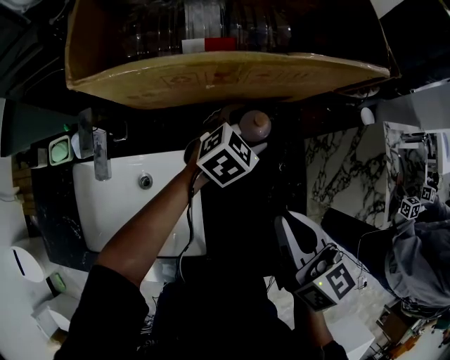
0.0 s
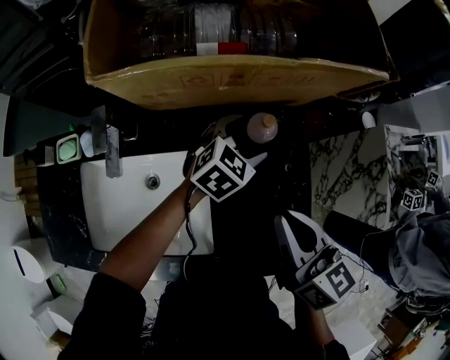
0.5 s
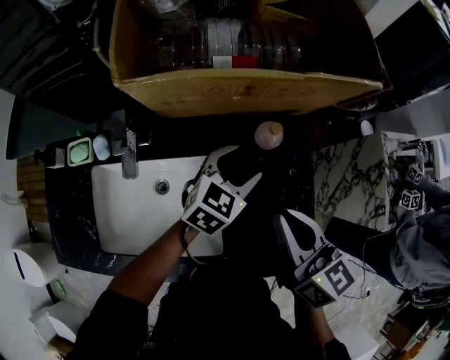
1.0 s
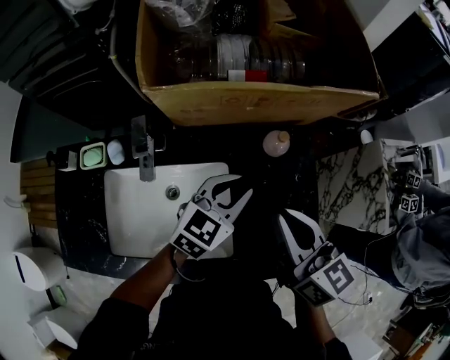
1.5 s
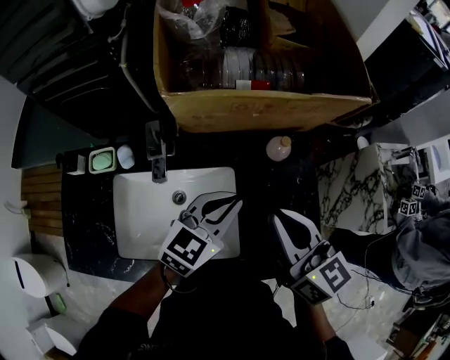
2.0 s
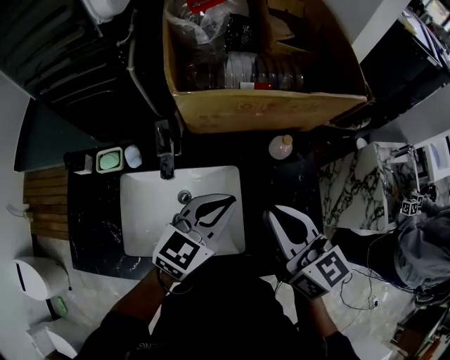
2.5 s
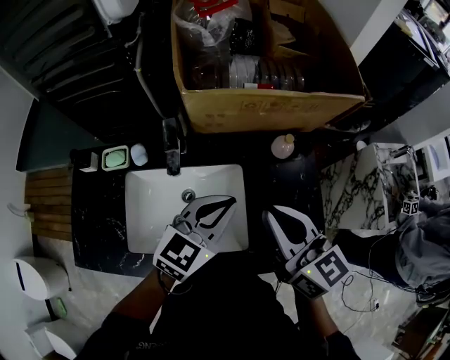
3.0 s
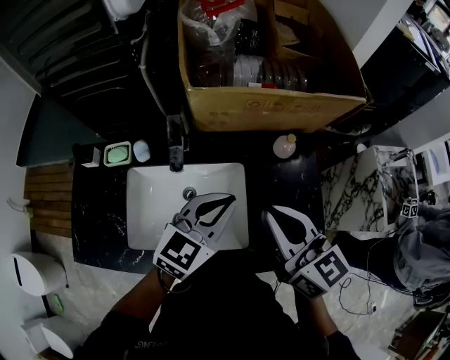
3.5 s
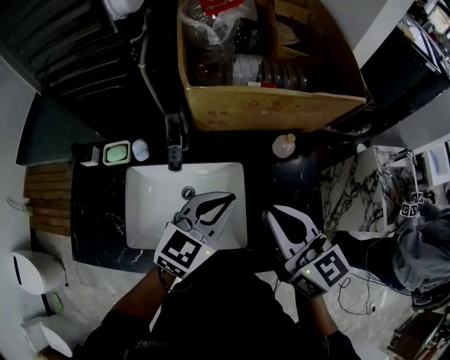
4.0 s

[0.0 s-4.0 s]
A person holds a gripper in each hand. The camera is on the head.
0.0 to 2.0 s: The right gripper is displaced to the left and upward by roughly 15 cm, while the left gripper is displaced backward, upward and to the left by some 25 cm, changes its angle by about 30 degrees, and closes up.
2.0 to 4.0 s: The right gripper ends up about 5 cm from where it was; the left gripper shifts by roughly 5 cm.

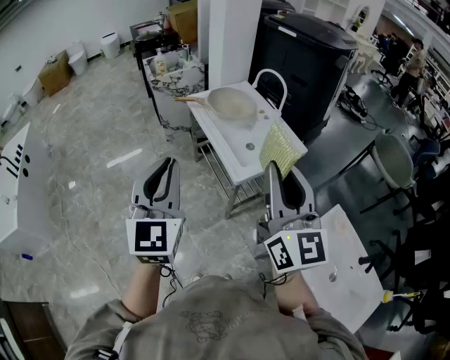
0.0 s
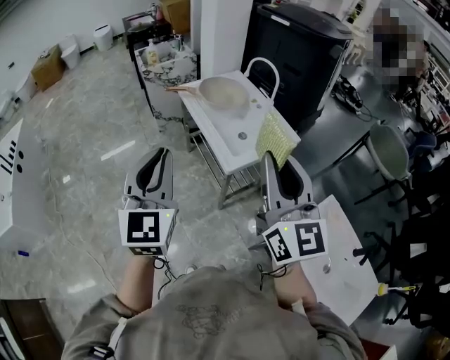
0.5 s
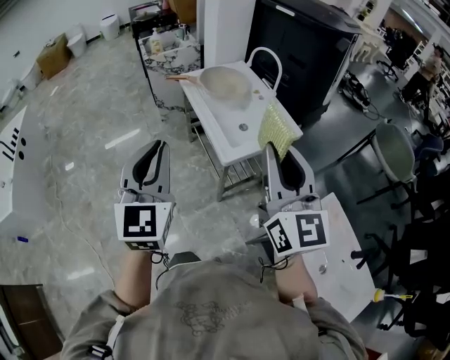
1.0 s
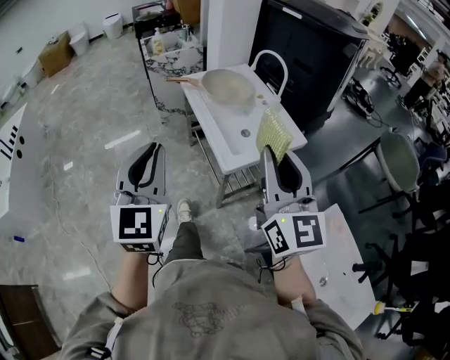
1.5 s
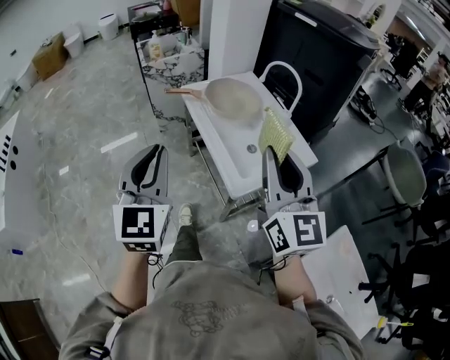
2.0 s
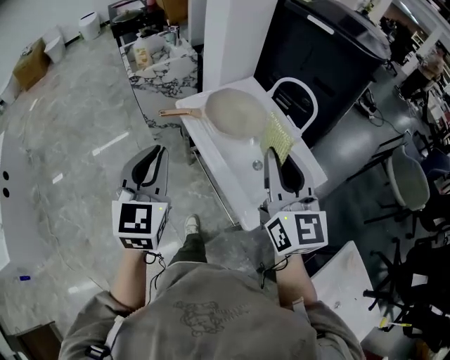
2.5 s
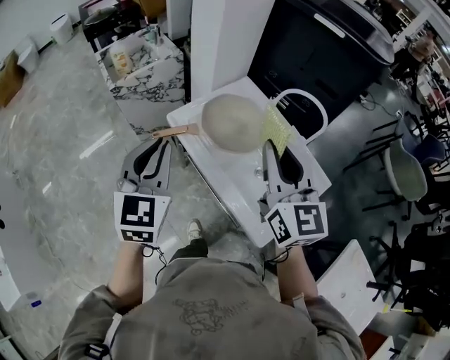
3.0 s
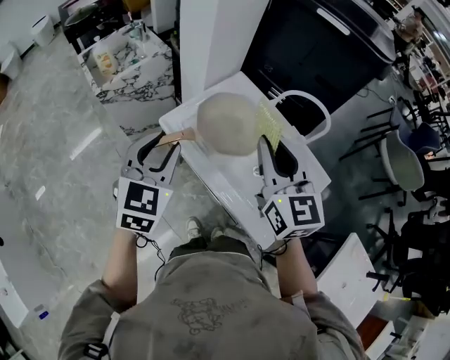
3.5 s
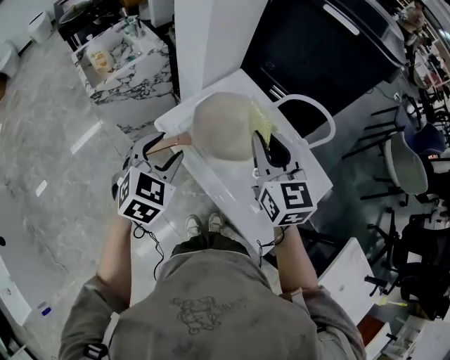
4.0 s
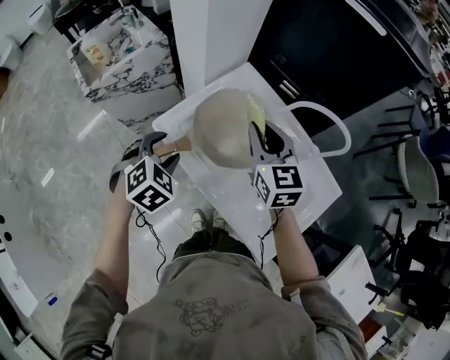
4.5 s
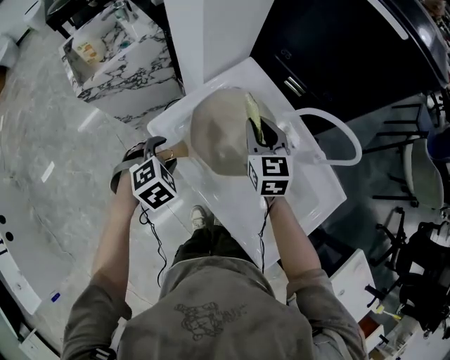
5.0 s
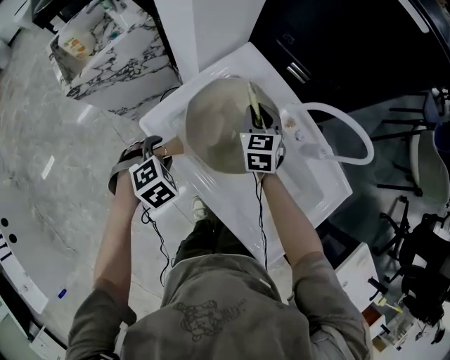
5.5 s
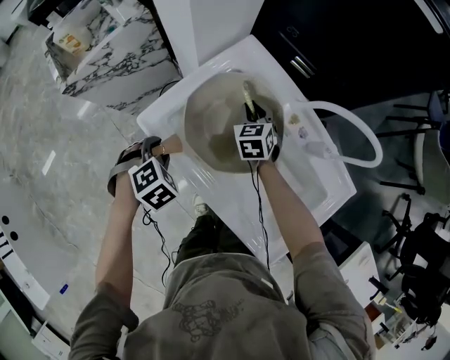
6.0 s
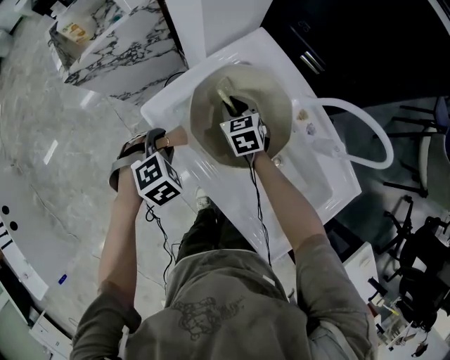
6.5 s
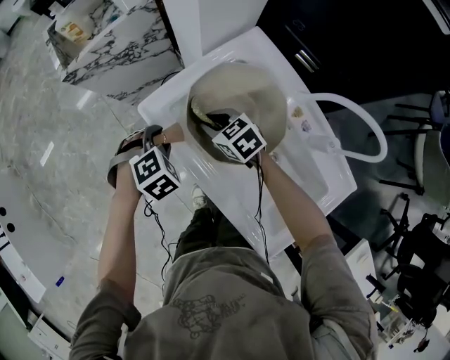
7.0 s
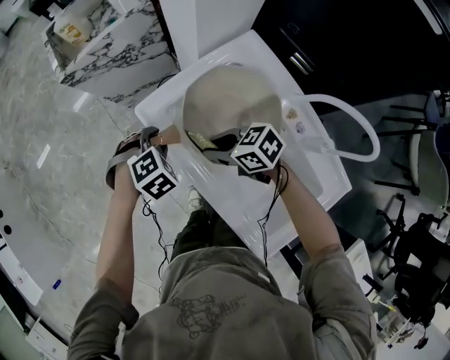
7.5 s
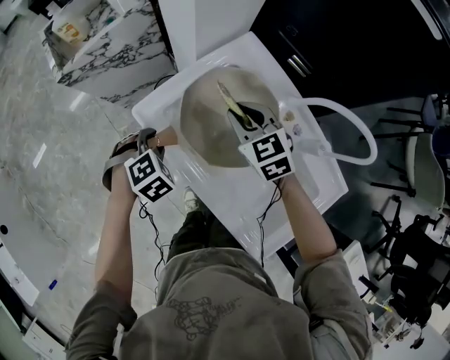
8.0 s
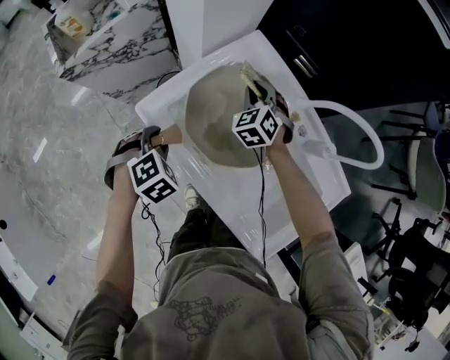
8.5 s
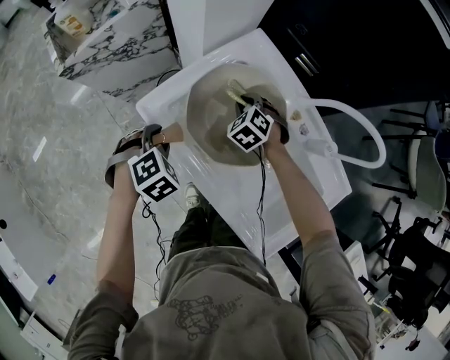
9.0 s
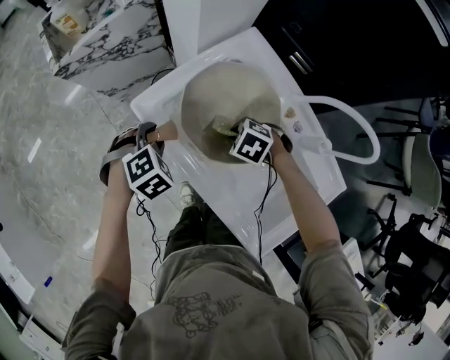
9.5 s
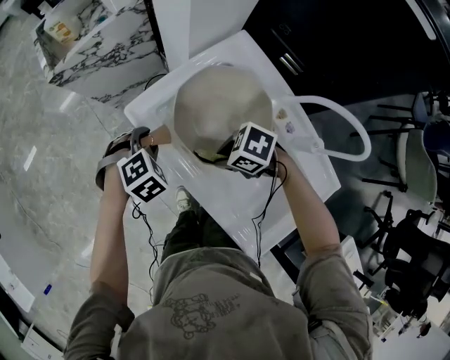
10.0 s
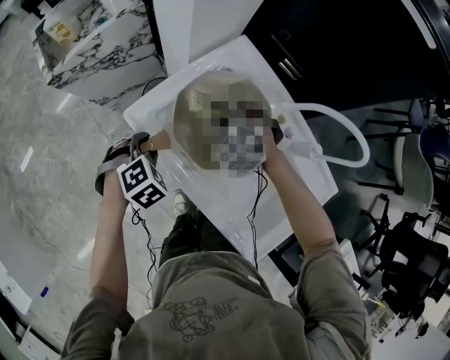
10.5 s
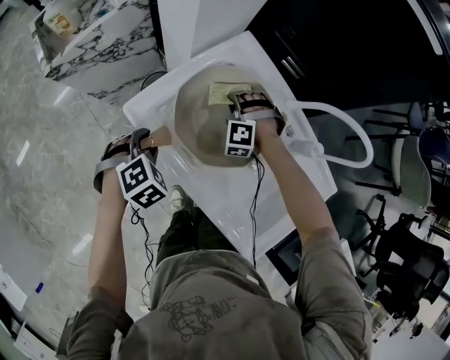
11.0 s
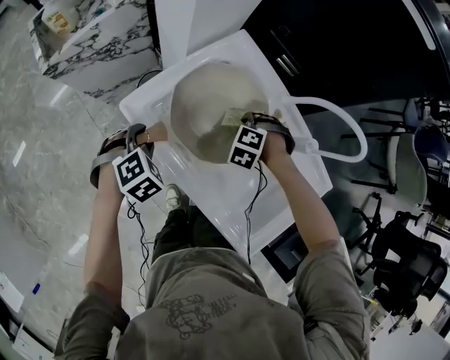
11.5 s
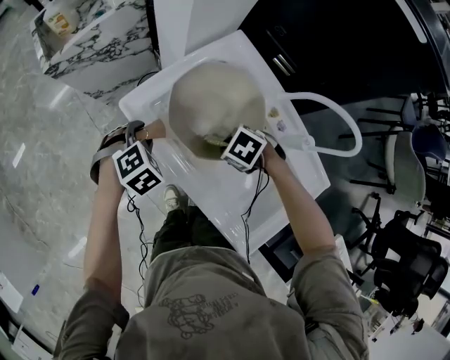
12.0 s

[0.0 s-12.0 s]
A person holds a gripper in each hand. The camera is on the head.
0.0 to 2.0 s: The grippers both shift forward and downward by some 20 cm.
2.0 to 4.0 s: The pair of grippers is taken forward, some 50 cm. The left gripper tilts its fingers roughly 30 degrees downward, and opens. Meanwhile the right gripper turns by about 30 degrees.
4.0 to 6.0 s: The right gripper heads downward and forward, covering approximately 40 cm, and points its fingers about 30 degrees further downward. The left gripper goes some 25 cm downward, and tips its fingers downward by roughly 40 degrees.
6.0 to 8.0 s: The right gripper shifts some 10 cm upward, and swivels about 30 degrees.
8.0 to 10.0 s: The right gripper ends up roughly 15 cm from where it was, and turns by roughly 60 degrees.
10.0 to 12.0 s: The right gripper travels downward and back again, about 5 cm each way, and changes its angle by roughly 20 degrees.

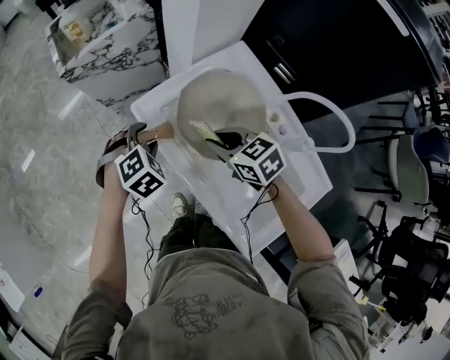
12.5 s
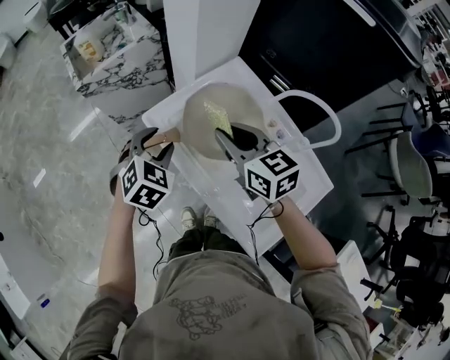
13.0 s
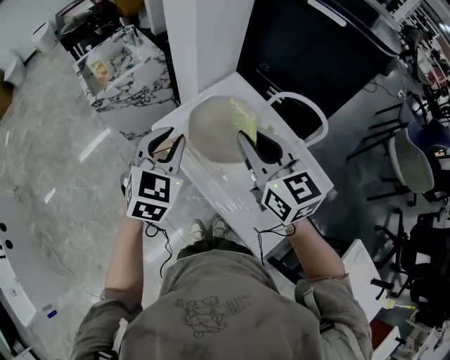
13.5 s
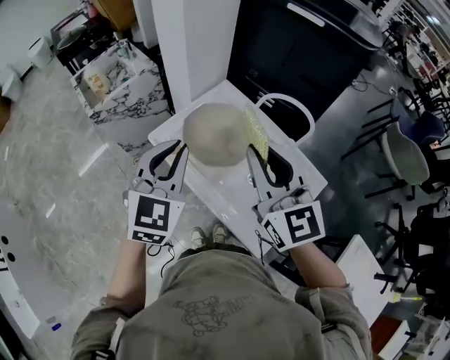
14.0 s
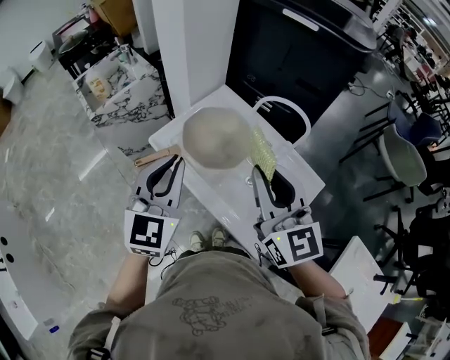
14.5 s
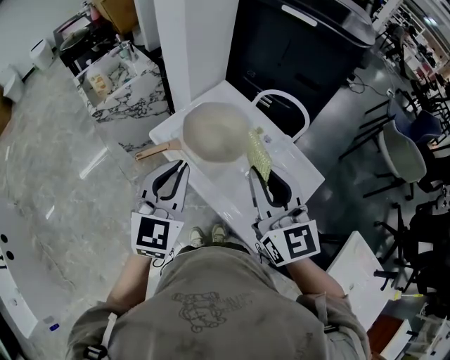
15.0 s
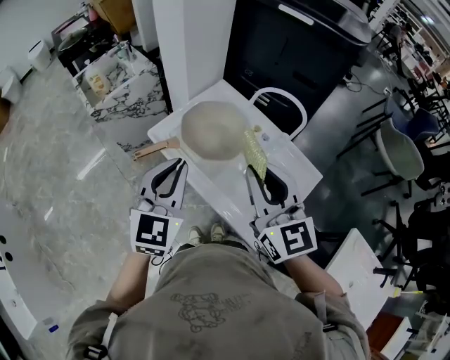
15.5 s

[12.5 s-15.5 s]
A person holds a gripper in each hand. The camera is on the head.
12.5 to 14.0 s: The grippers both shift upward by some 30 cm. The right gripper angles its fingers upward, by approximately 40 degrees. Meanwhile the left gripper angles its fingers upward, by roughly 50 degrees, and closes its fingers.
14.0 to 15.5 s: The two grippers go some 5 cm backward.

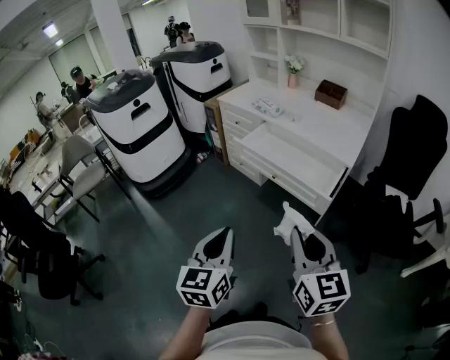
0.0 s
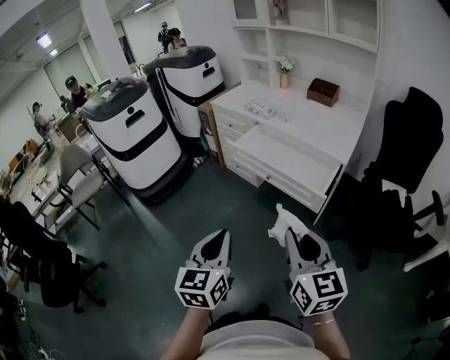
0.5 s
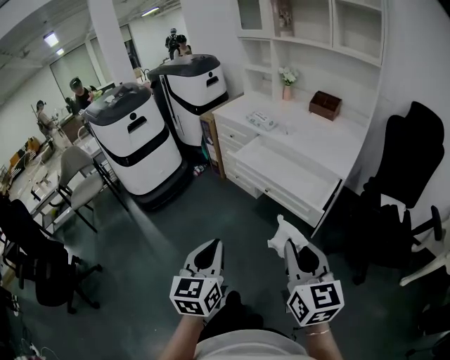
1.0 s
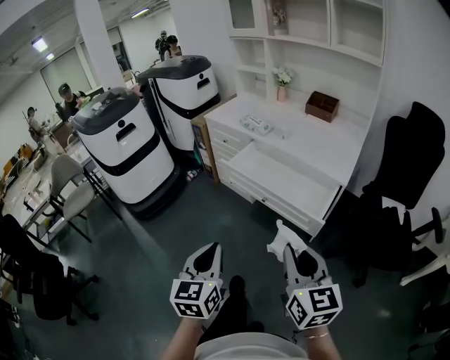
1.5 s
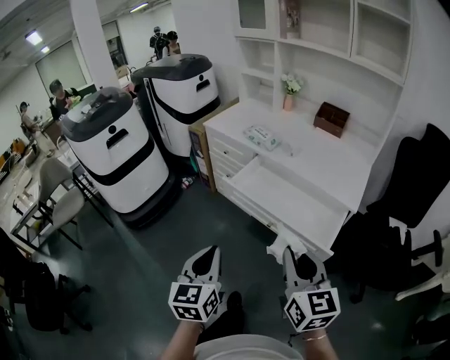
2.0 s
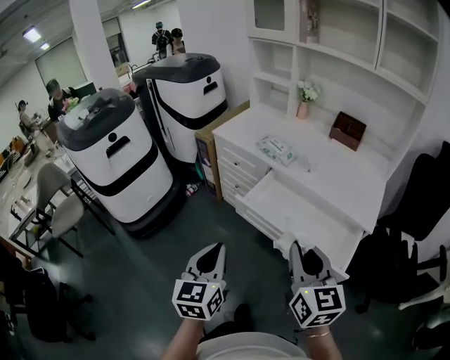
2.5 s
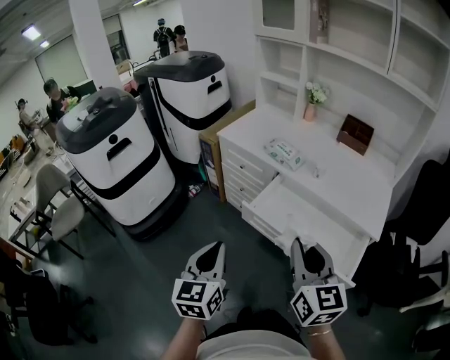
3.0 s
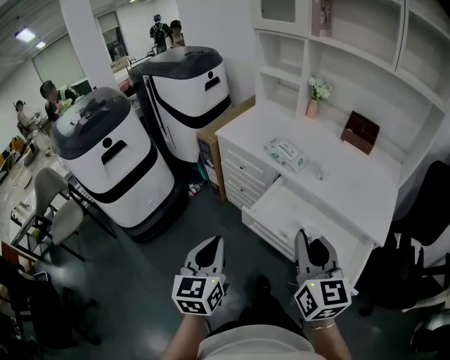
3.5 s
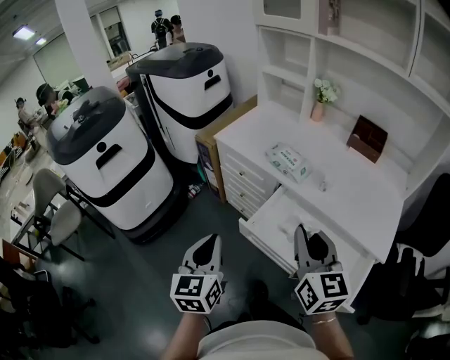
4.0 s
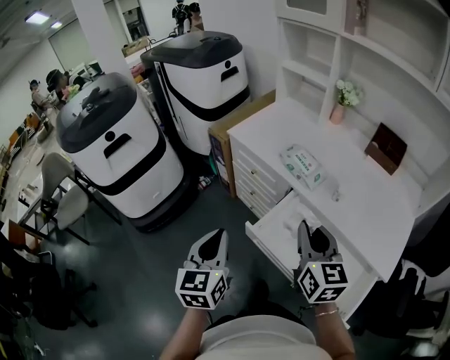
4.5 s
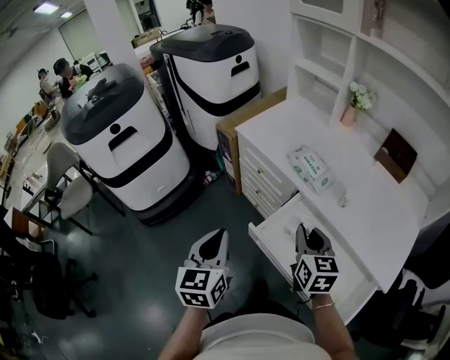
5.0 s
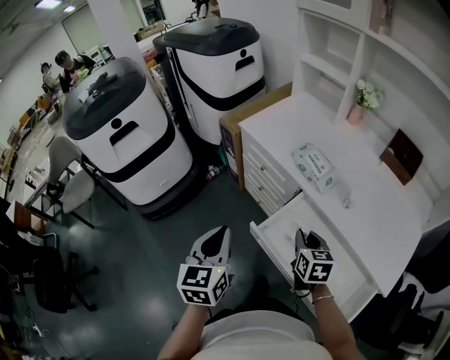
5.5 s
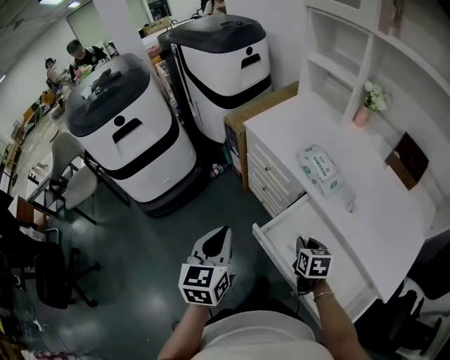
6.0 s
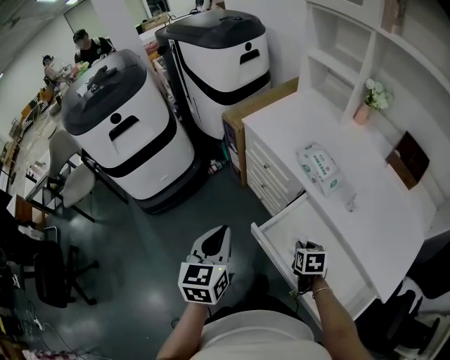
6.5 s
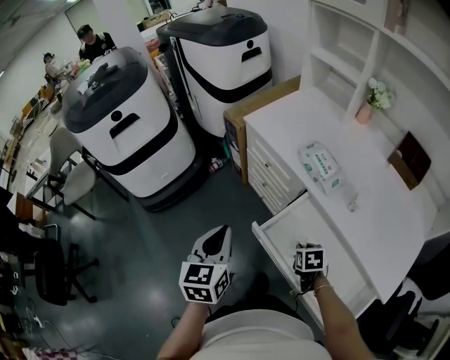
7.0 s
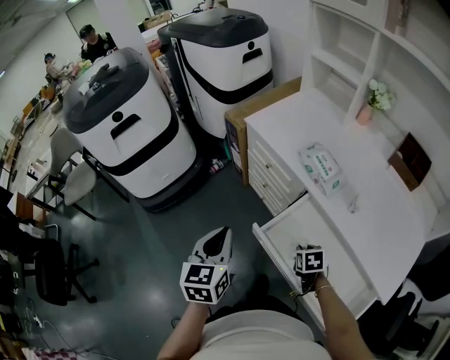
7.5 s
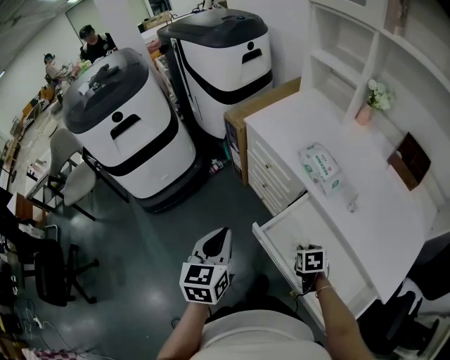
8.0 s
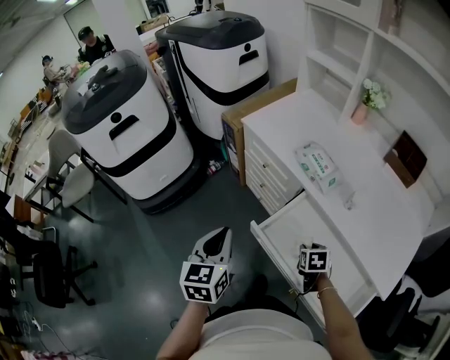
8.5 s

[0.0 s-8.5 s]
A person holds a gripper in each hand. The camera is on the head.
0.0 to 2.0 s: Both grippers travel together forward, about 20 cm.
2.0 to 4.0 s: Both grippers move forward, roughly 30 cm.
4.0 to 6.5 s: The left gripper shifts approximately 5 cm forward. Meanwhile the right gripper travels downward by approximately 30 cm, and tips its fingers downward by roughly 50 degrees.
6.5 to 8.5 s: The grippers make only small movements.
